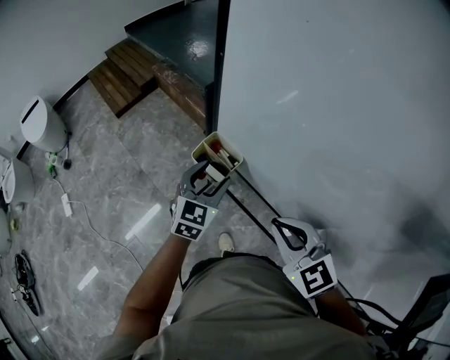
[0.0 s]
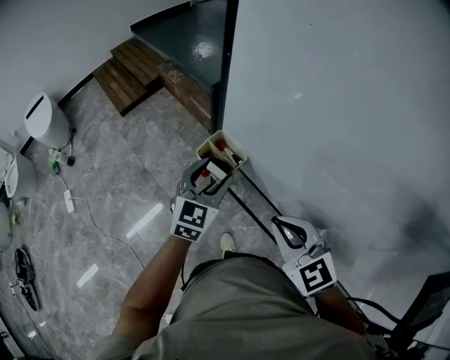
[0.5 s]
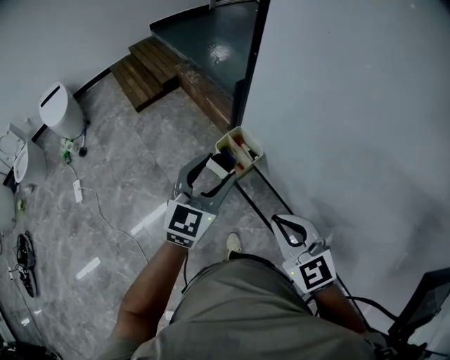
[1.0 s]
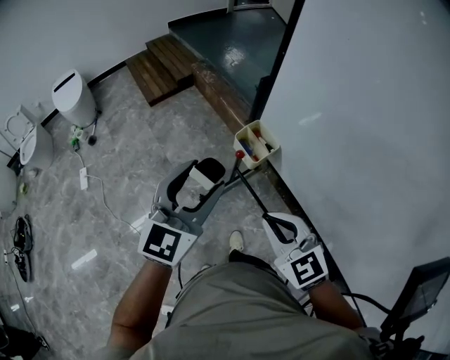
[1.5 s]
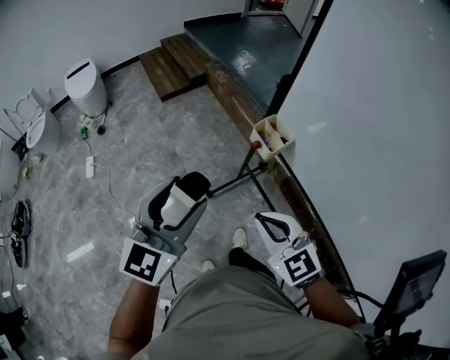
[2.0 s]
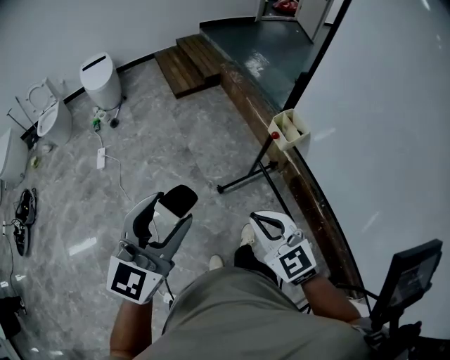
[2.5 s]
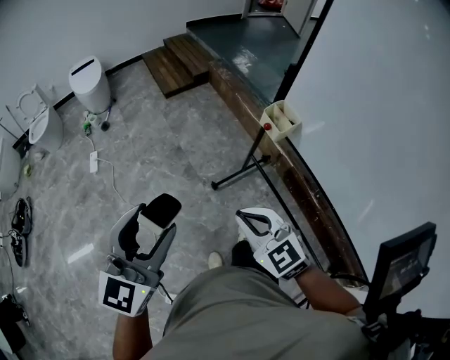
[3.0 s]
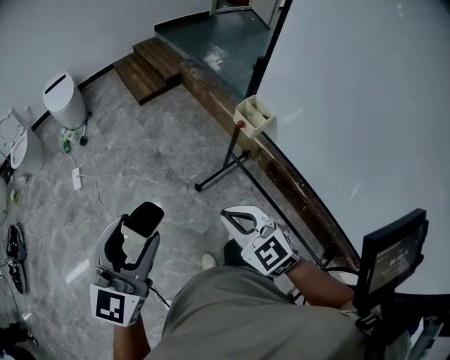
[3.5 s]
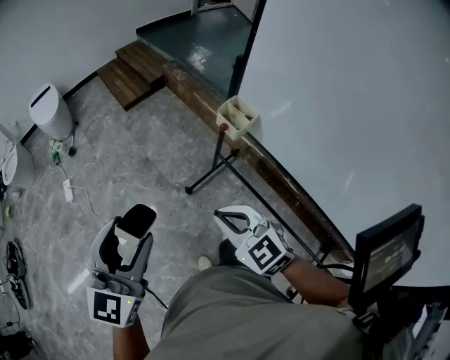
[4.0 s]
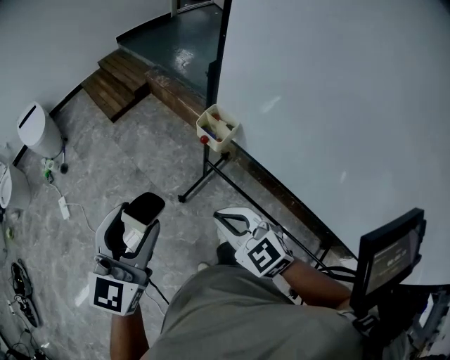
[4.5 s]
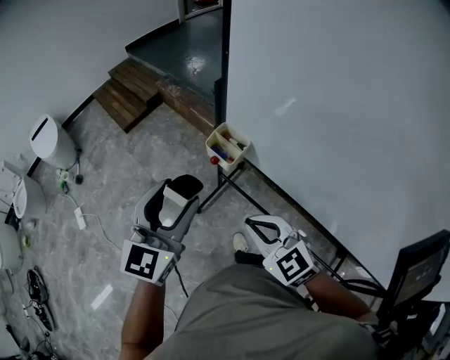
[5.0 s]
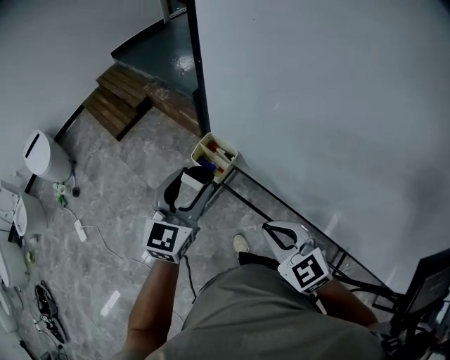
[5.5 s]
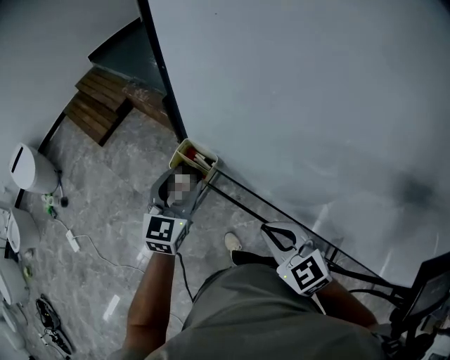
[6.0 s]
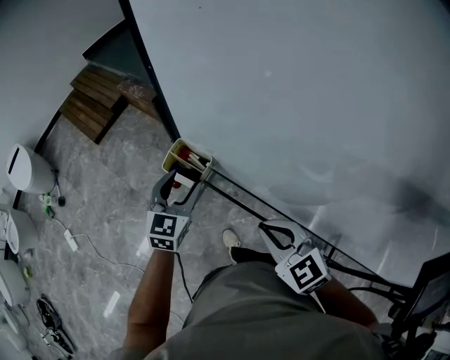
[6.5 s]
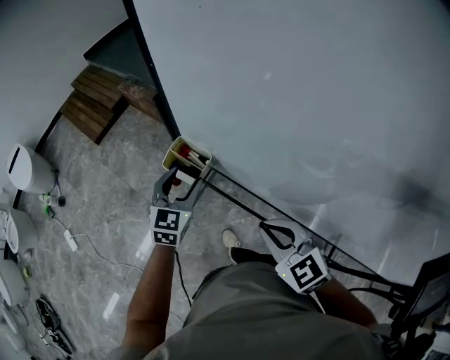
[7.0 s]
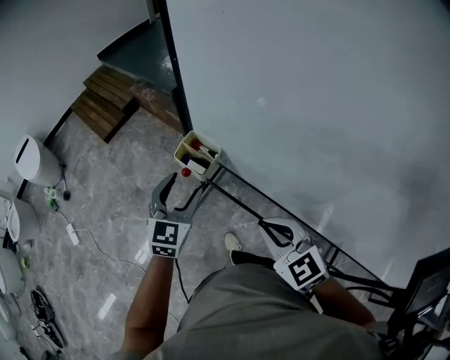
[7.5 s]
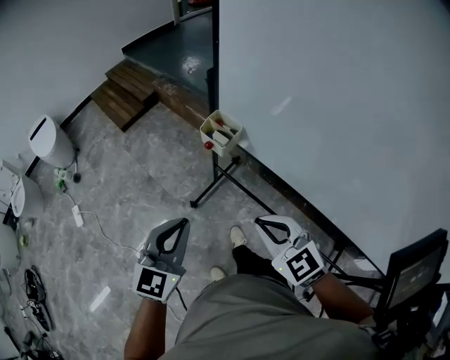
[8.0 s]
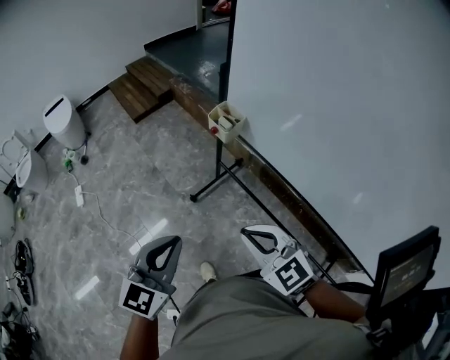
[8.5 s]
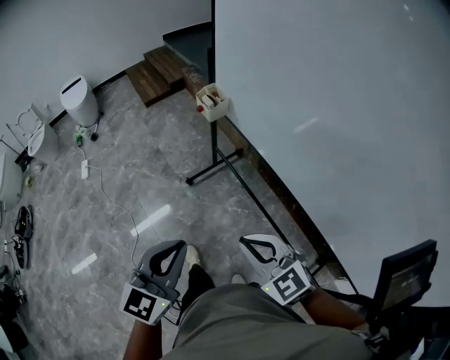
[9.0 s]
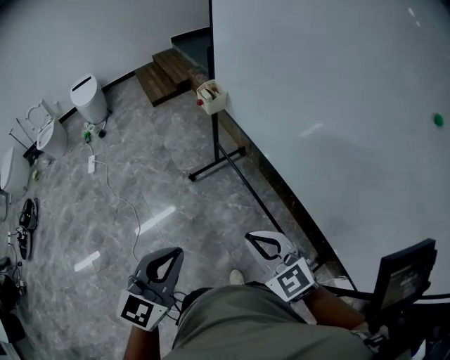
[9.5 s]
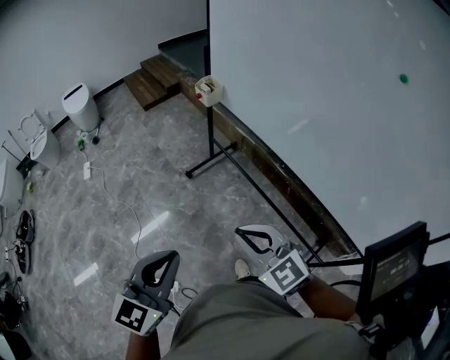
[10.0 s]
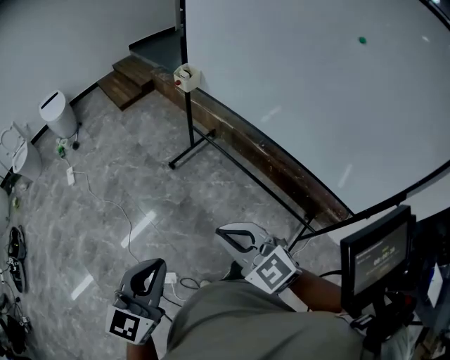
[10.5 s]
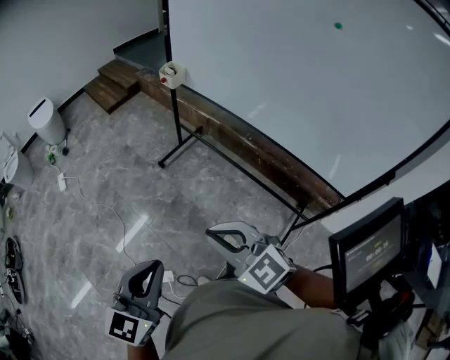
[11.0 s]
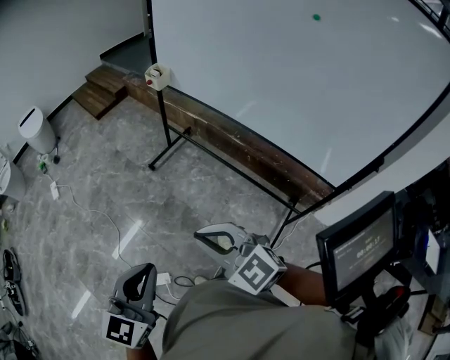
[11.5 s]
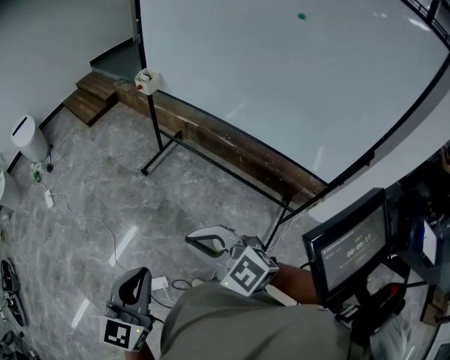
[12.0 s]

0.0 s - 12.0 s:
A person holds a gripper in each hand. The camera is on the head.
0.0 s - 2.0 s: The left gripper heads backward, to the left and upward, covering about 40 cm, and turns by approximately 20 degrees; the right gripper moves to the left and backward, about 20 cm.
2.0 s - 4.0 s: The left gripper heads to the left and backward, covering approximately 10 cm, while the right gripper heads to the left, covering roughly 5 cm.
4.0 s - 6.0 s: The right gripper moves to the right and forward, approximately 30 cm, and rotates approximately 20 degrees; the left gripper shifts approximately 50 cm forward, to the right and downward, and changes its angle by roughly 20 degrees.
6.0 s - 8.0 s: The left gripper shifts some 25 cm backward, and closes up, while the right gripper shifts about 15 cm backward and to the left.
8.0 s - 10.0 s: The grippers both shift backward by some 40 cm.
10.0 s - 12.0 s: The right gripper moves backward and to the left, roughly 10 cm. The left gripper goes about 10 cm backward.

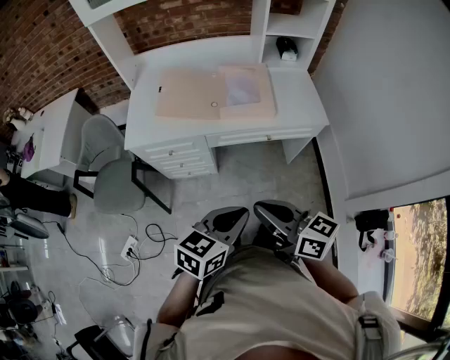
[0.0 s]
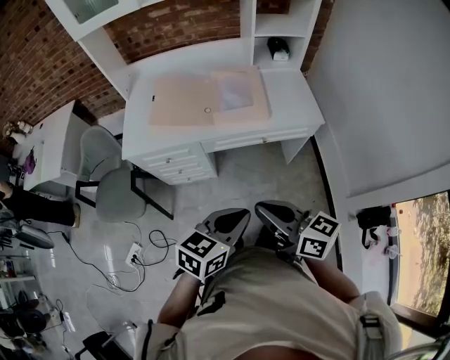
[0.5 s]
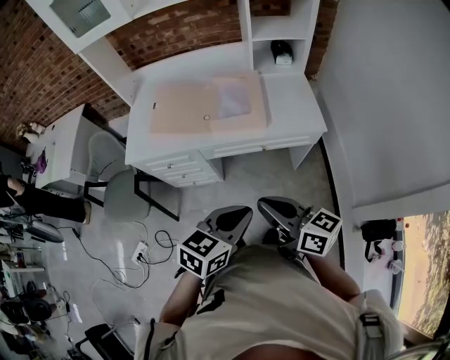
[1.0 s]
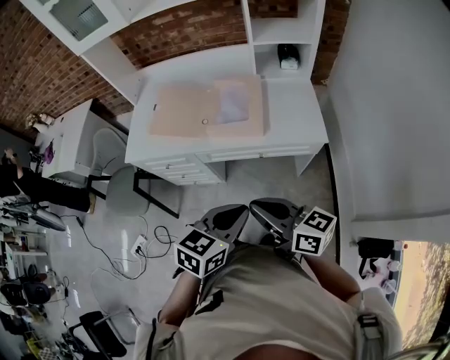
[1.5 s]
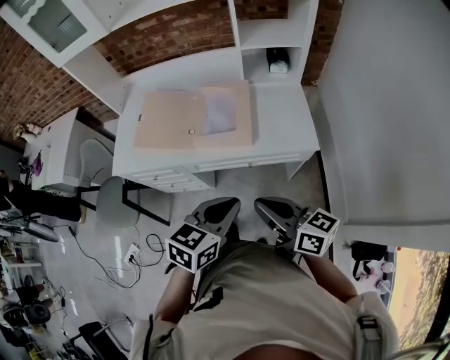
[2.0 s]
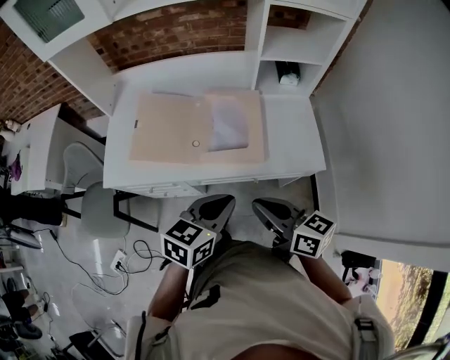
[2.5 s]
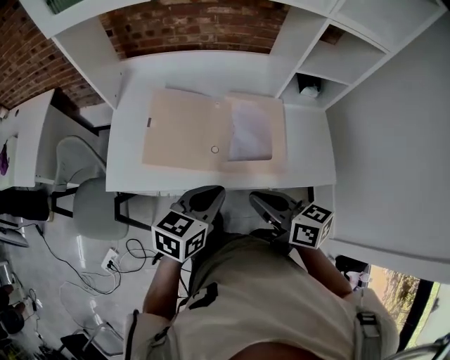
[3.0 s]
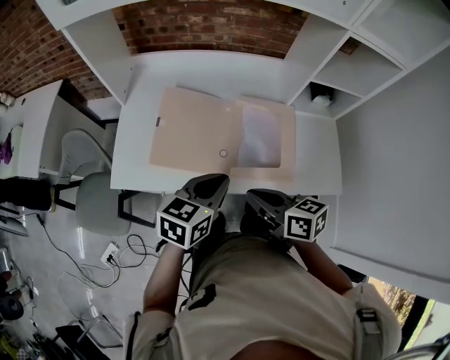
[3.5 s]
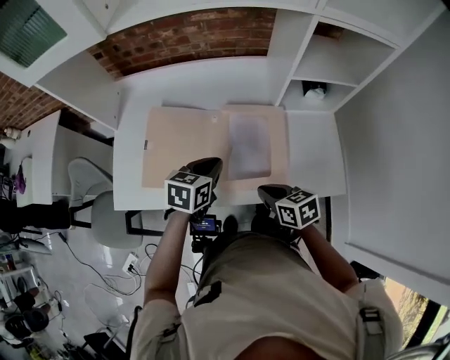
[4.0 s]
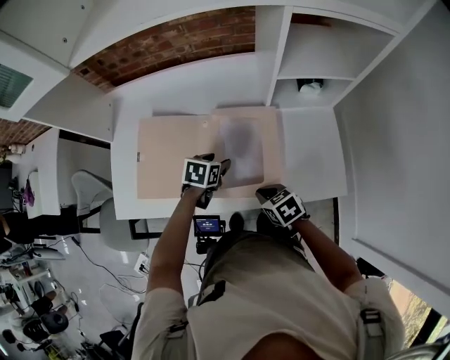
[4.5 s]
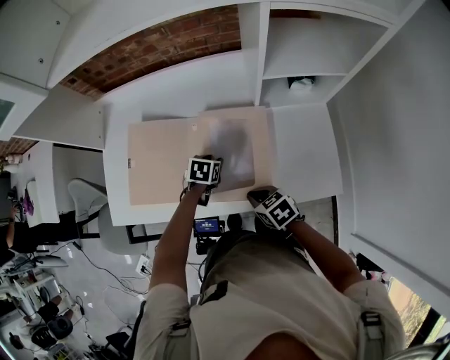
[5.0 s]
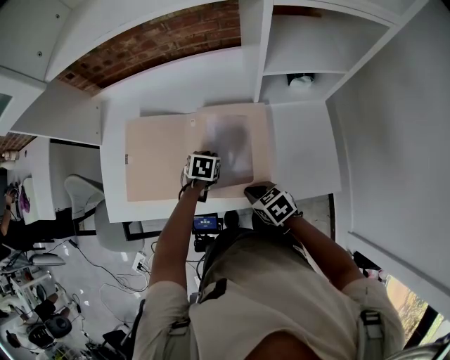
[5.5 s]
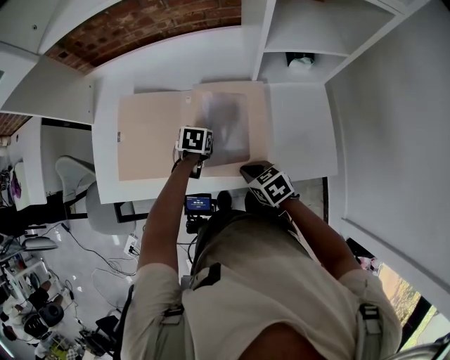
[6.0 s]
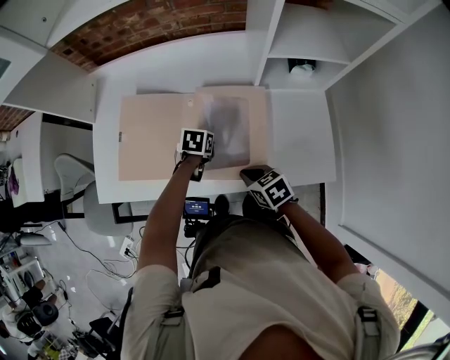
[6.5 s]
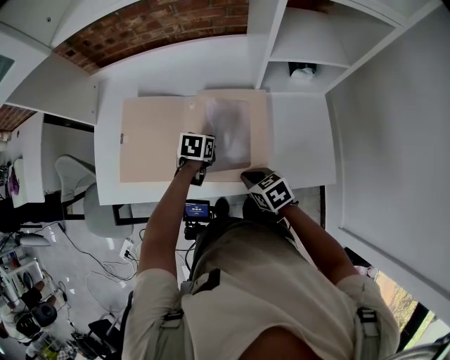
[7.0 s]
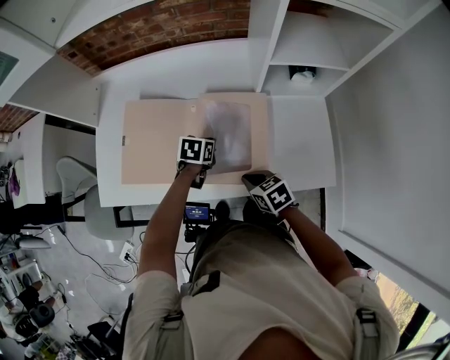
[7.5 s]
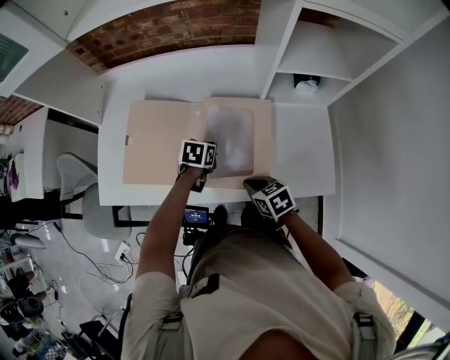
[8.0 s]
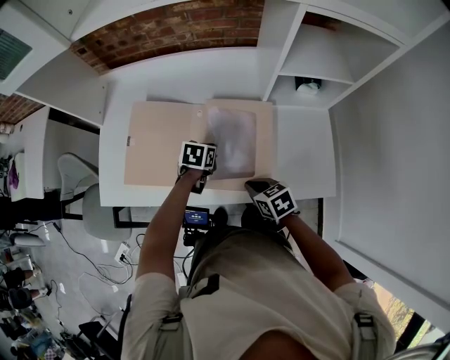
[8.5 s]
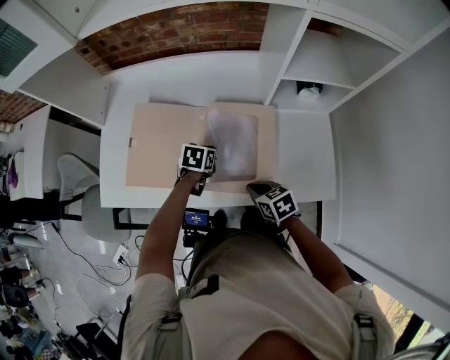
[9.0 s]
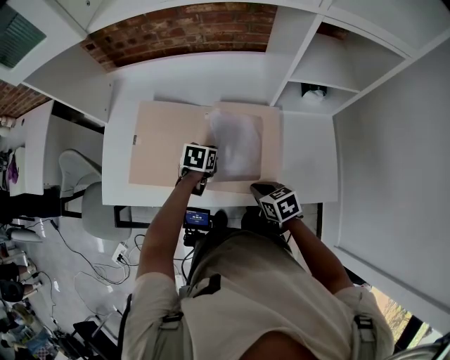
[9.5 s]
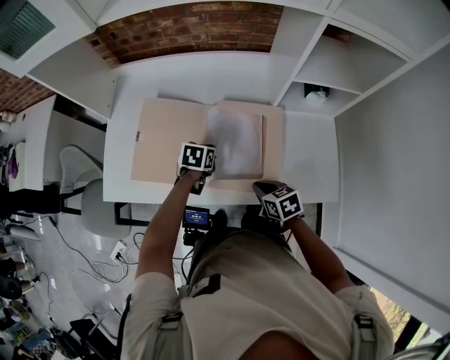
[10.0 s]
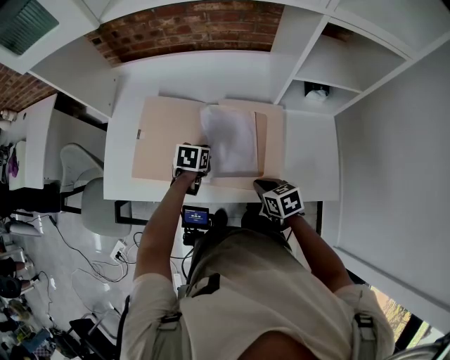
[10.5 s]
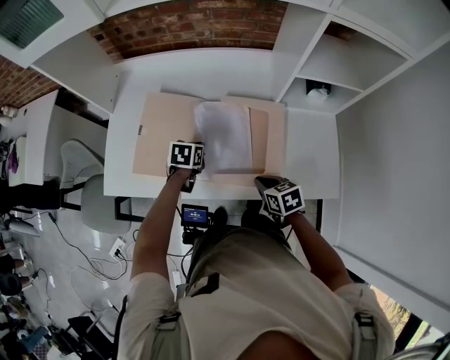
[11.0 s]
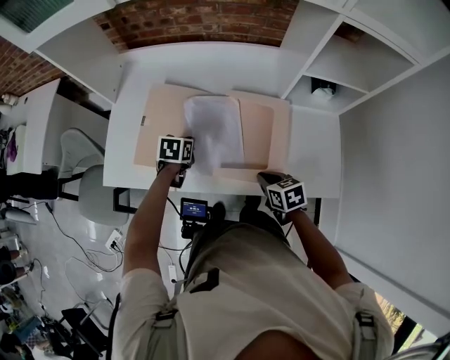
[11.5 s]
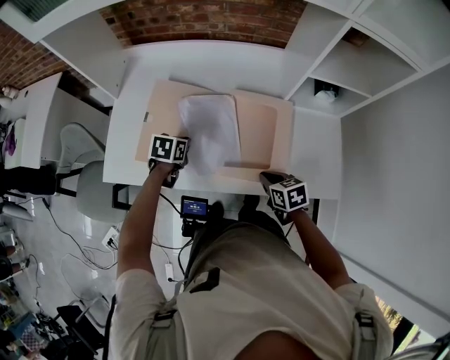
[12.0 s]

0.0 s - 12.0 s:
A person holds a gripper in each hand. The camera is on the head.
0.0 s - 2.0 s: The right gripper is displaced to the right and forward by about 20 cm, while the left gripper shifts roughly 20 cm forward and to the right.
2.0 s - 4.0 s: The left gripper heads forward and to the left, covering approximately 35 cm; the right gripper shifts about 30 cm forward and downward, and points its fingers approximately 40 degrees further downward.
4.0 s - 6.0 s: The left gripper shifts some 20 cm downward, turns by some 30 degrees, and opens and closes again, while the right gripper travels downward by approximately 5 cm.
6.0 s - 10.0 s: The grippers make only small movements.
10.0 s - 12.0 s: The left gripper shifts roughly 10 cm to the left.

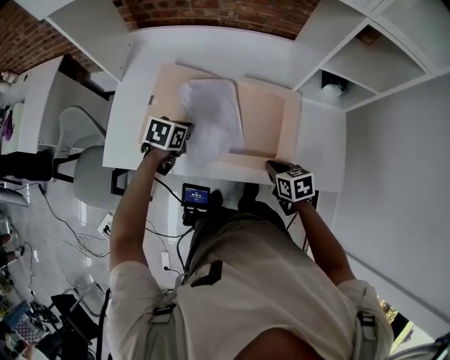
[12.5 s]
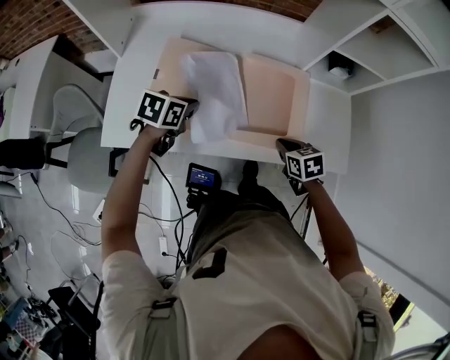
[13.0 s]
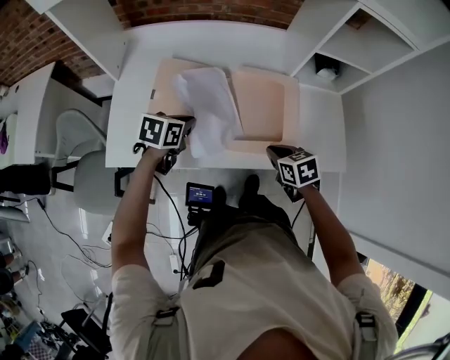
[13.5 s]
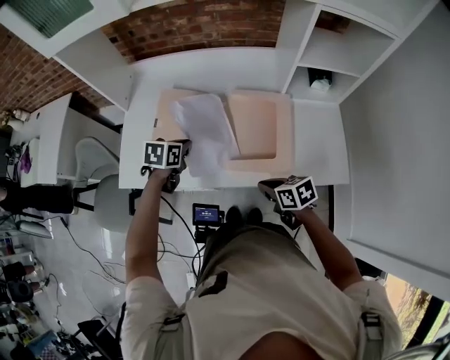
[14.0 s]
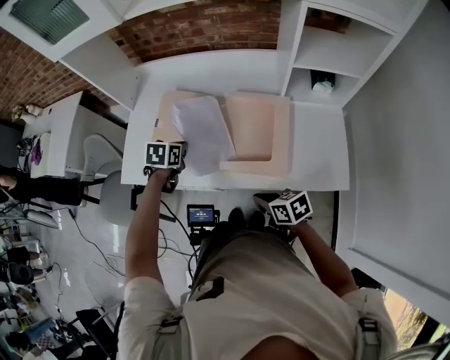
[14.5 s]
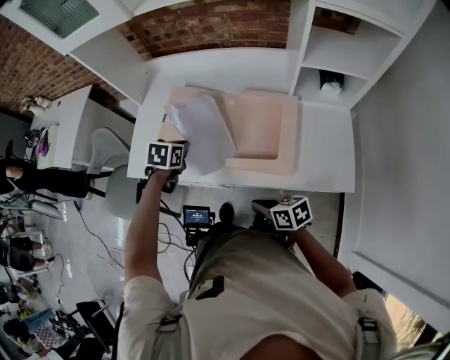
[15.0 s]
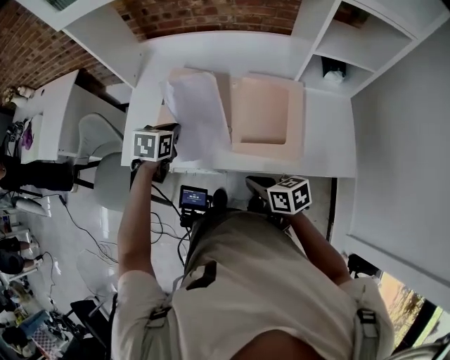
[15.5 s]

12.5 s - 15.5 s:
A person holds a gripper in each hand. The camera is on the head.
12.5 s - 14.0 s: The right gripper goes approximately 5 cm backward.
14.0 s - 15.5 s: The grippers both shift to the left by about 5 cm.
